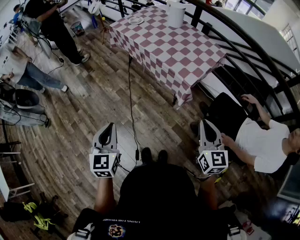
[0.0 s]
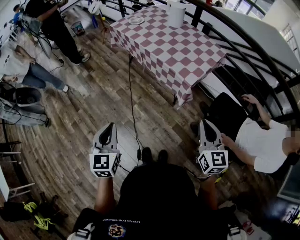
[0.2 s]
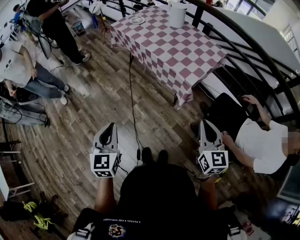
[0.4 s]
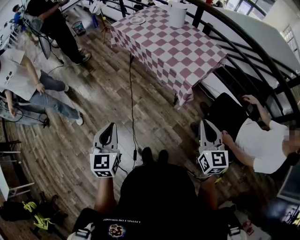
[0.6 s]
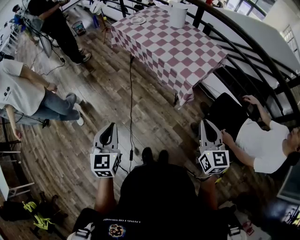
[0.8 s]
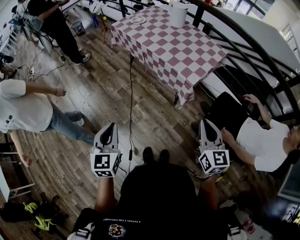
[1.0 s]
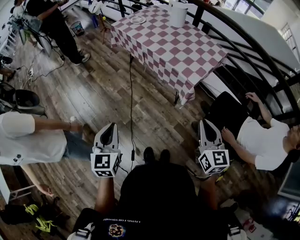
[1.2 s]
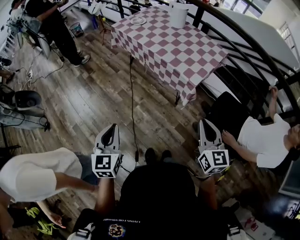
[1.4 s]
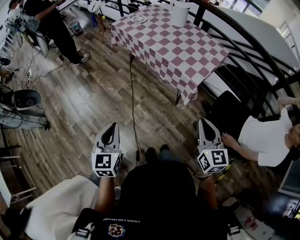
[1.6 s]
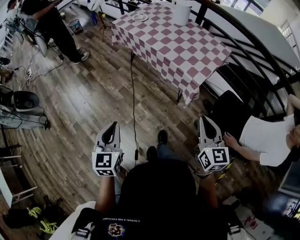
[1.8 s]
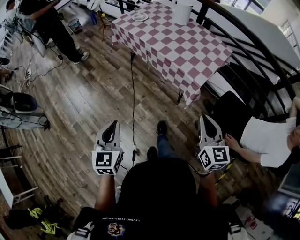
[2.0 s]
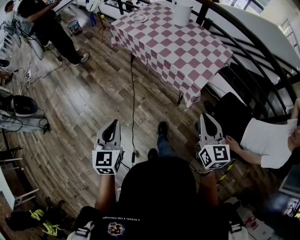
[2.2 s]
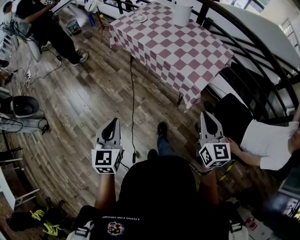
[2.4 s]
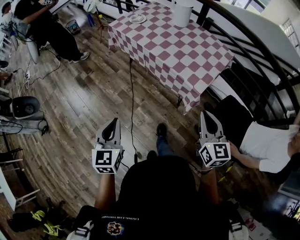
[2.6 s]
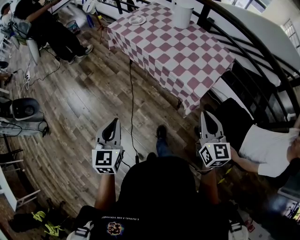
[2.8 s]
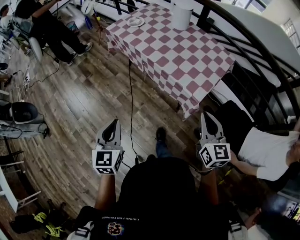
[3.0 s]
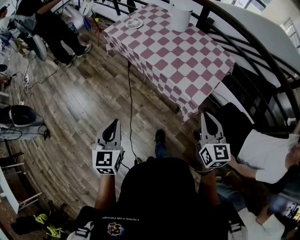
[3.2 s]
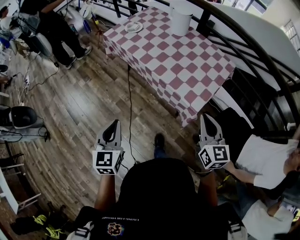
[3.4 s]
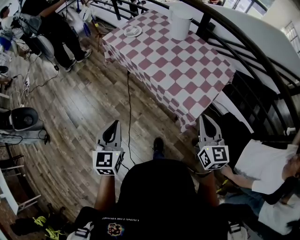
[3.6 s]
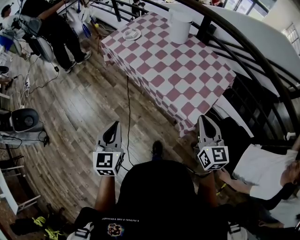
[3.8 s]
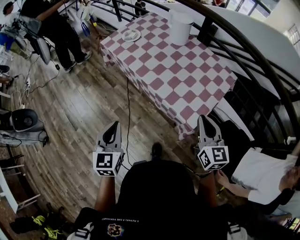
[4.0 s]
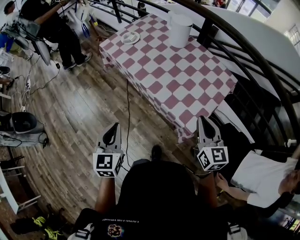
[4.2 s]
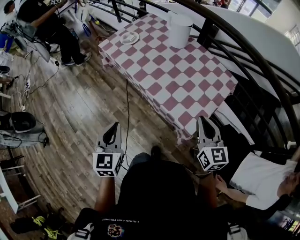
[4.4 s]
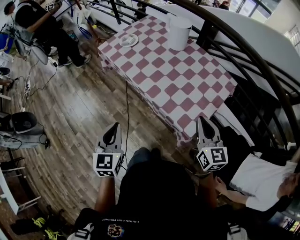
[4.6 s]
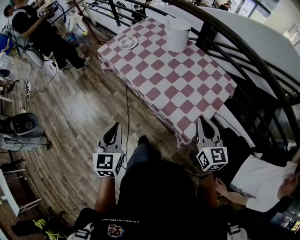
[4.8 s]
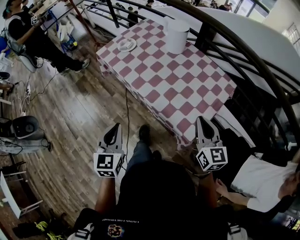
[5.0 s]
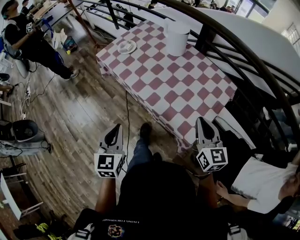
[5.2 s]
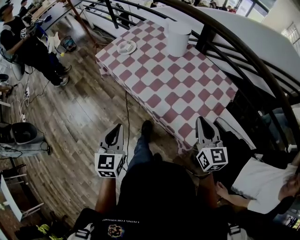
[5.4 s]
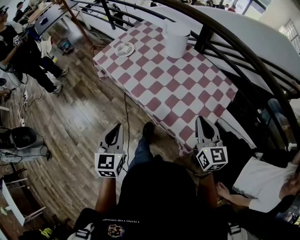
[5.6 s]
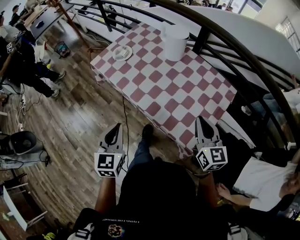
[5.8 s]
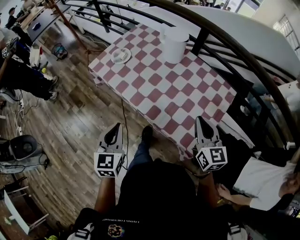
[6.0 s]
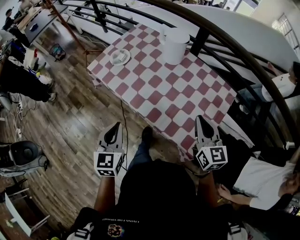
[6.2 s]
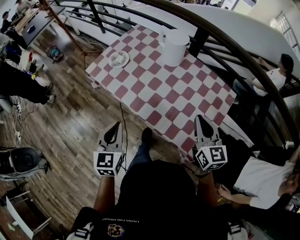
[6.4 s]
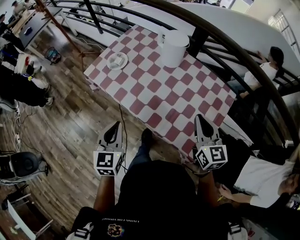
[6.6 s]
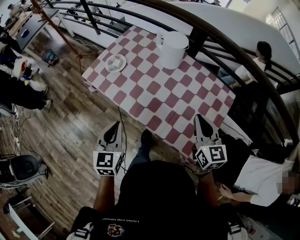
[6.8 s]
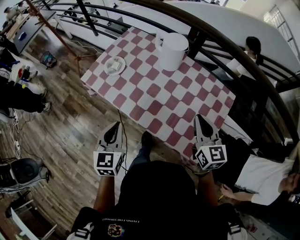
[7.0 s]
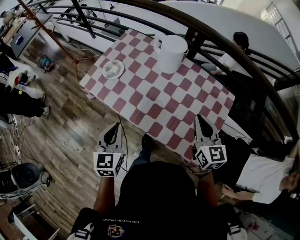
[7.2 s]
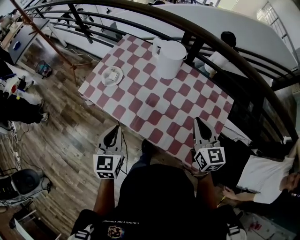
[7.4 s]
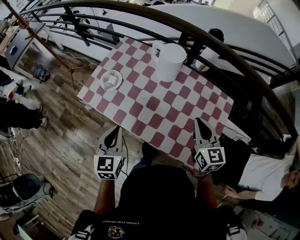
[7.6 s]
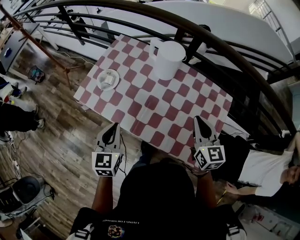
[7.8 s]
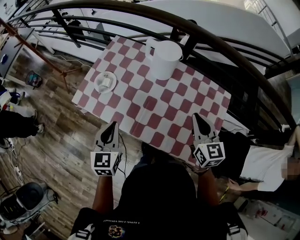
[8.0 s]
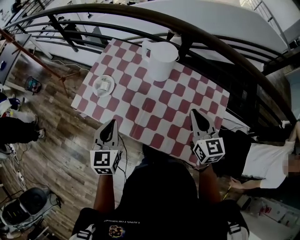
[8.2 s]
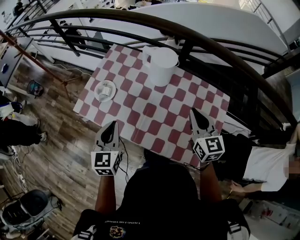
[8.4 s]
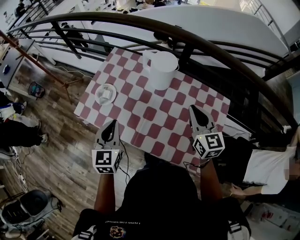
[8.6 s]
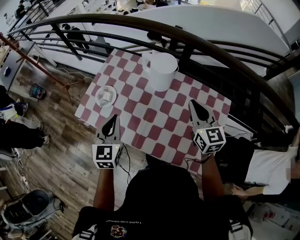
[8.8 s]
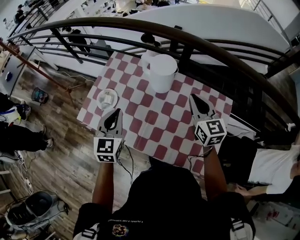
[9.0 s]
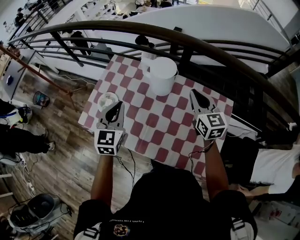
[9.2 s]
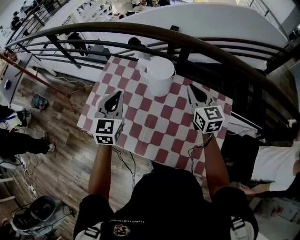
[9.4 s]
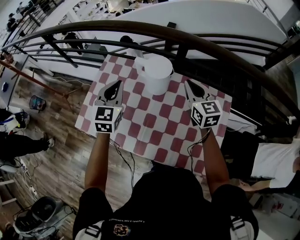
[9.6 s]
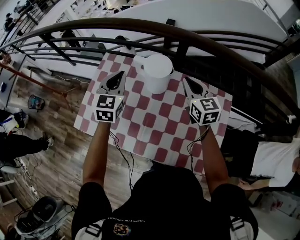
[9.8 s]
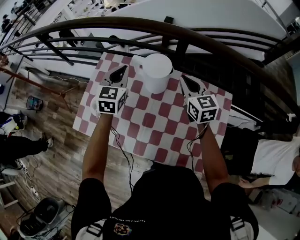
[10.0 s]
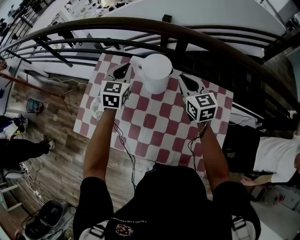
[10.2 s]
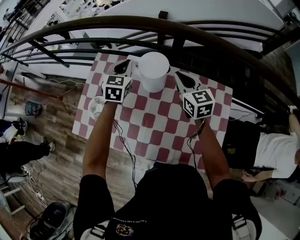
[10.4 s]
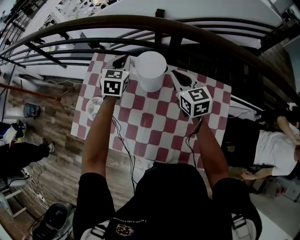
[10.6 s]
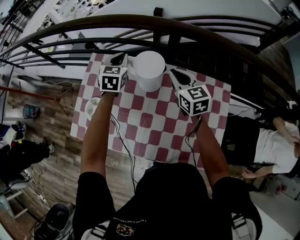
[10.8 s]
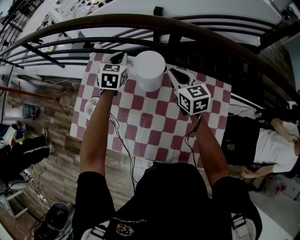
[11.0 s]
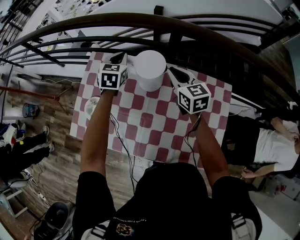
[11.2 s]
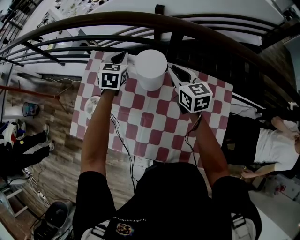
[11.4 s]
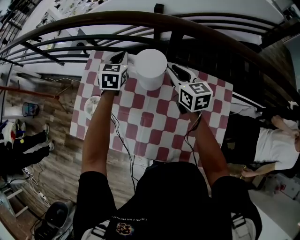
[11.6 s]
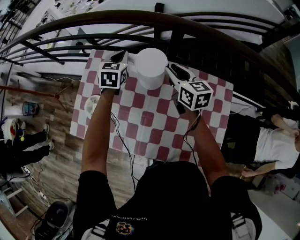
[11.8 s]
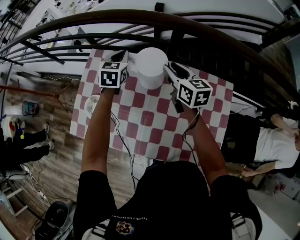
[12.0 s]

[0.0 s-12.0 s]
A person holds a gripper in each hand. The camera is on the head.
0.0 to 1.6 s: The two grippers go about 5 cm to the left.
1.6 to 3.0 s: Both grippers travel together forward, roughly 15 cm.
3.0 to 4.4 s: The left gripper is displaced forward and to the right by some 20 cm. The right gripper heads forward, covering about 20 cm.
4.4 to 6.0 s: Both grippers move forward, roughly 15 cm.
6.0 to 7.6 s: The grippers both shift forward by approximately 15 cm.
7.6 to 9.0 s: The grippers both shift forward by about 15 cm.
9.0 to 10.4 s: The right gripper moves forward, roughly 15 cm. The left gripper heads forward, covering some 25 cm.
10.4 to 12.0 s: The left gripper ends up approximately 5 cm from where it was, while the right gripper opens its fingers.

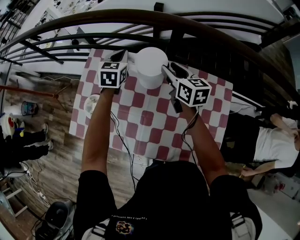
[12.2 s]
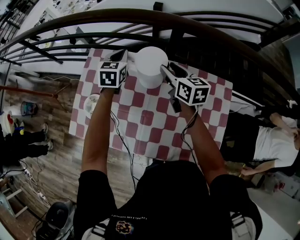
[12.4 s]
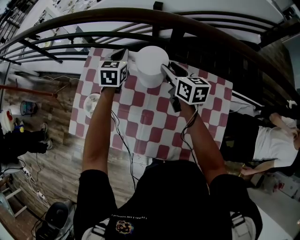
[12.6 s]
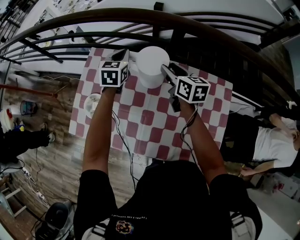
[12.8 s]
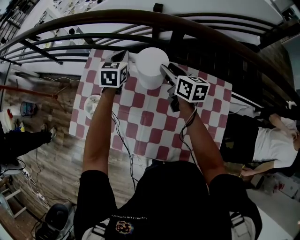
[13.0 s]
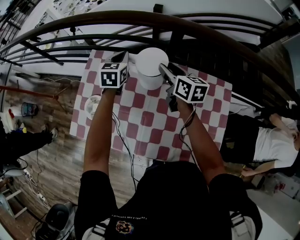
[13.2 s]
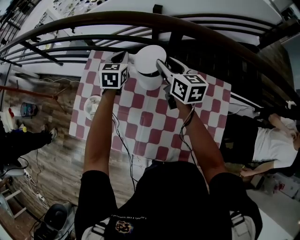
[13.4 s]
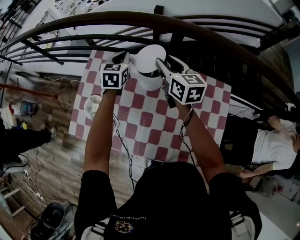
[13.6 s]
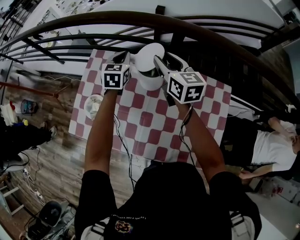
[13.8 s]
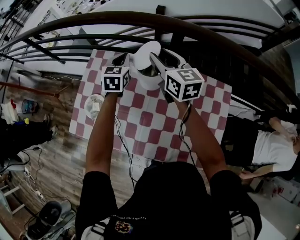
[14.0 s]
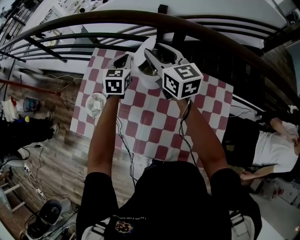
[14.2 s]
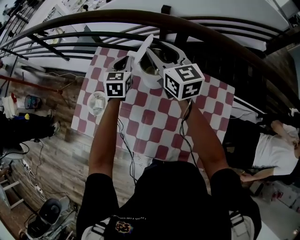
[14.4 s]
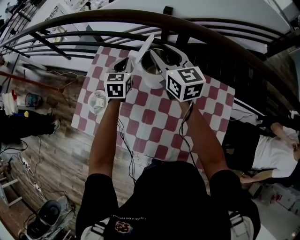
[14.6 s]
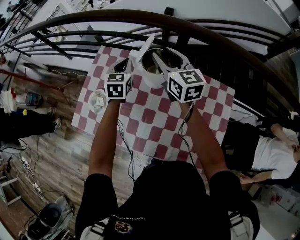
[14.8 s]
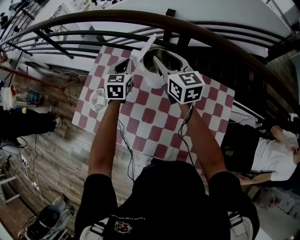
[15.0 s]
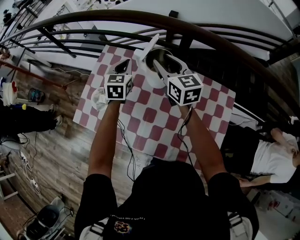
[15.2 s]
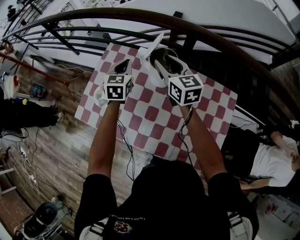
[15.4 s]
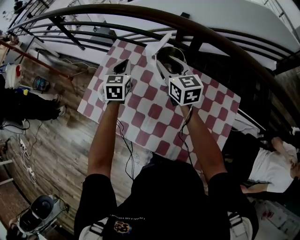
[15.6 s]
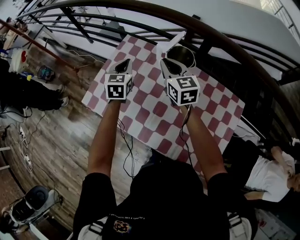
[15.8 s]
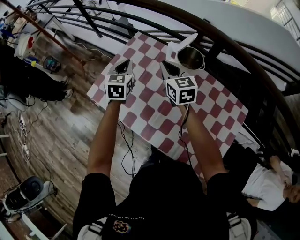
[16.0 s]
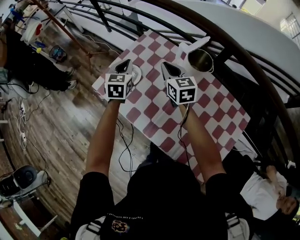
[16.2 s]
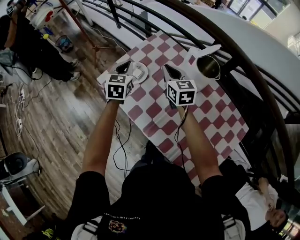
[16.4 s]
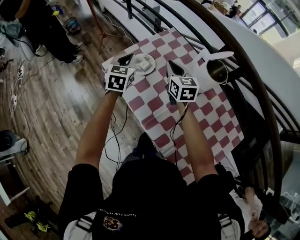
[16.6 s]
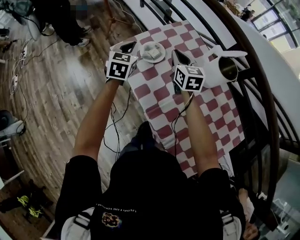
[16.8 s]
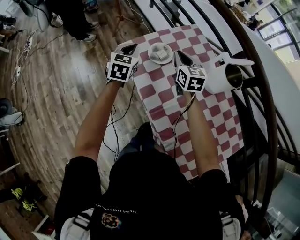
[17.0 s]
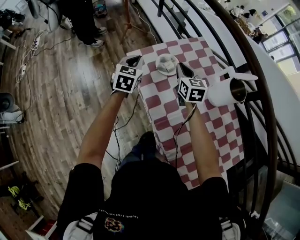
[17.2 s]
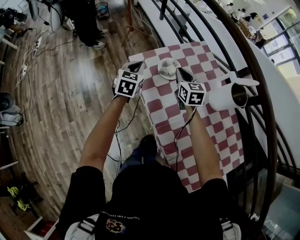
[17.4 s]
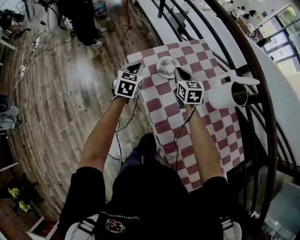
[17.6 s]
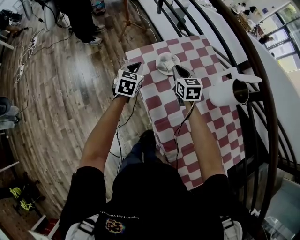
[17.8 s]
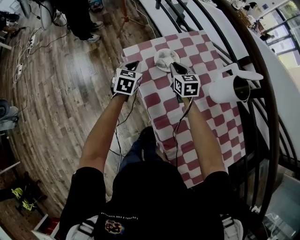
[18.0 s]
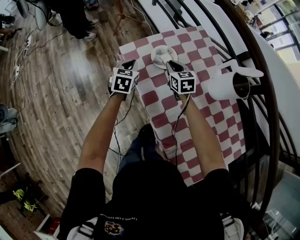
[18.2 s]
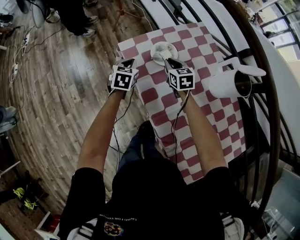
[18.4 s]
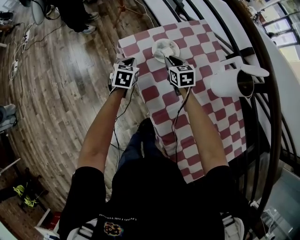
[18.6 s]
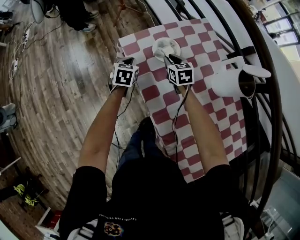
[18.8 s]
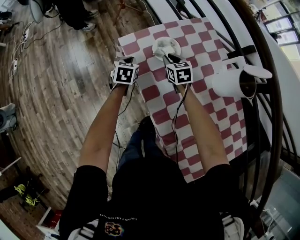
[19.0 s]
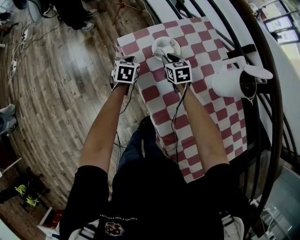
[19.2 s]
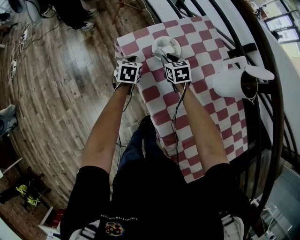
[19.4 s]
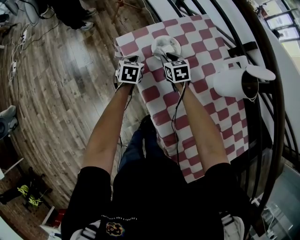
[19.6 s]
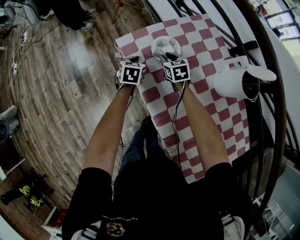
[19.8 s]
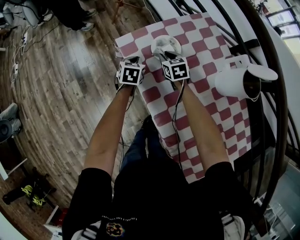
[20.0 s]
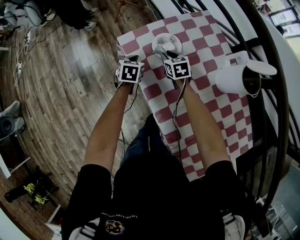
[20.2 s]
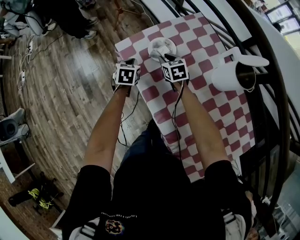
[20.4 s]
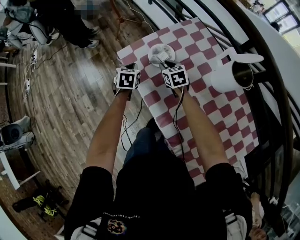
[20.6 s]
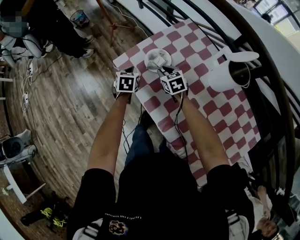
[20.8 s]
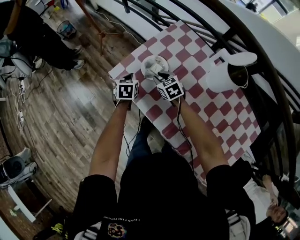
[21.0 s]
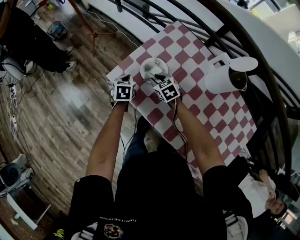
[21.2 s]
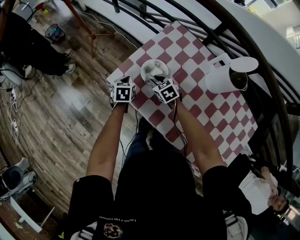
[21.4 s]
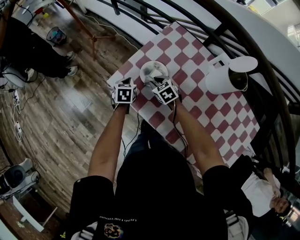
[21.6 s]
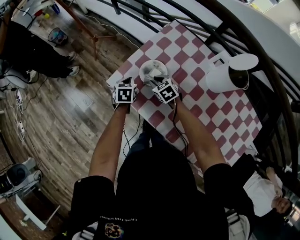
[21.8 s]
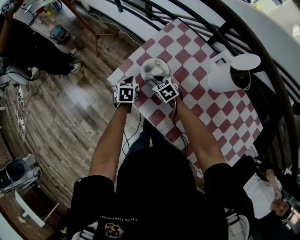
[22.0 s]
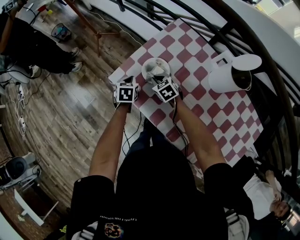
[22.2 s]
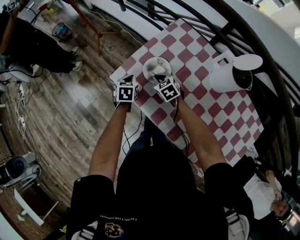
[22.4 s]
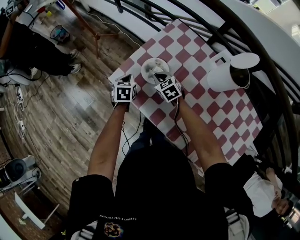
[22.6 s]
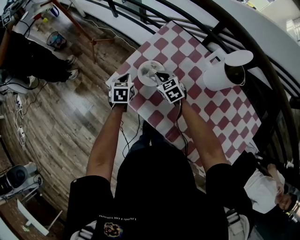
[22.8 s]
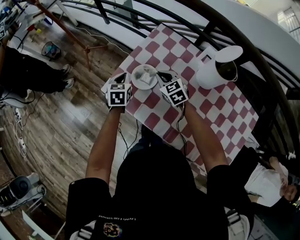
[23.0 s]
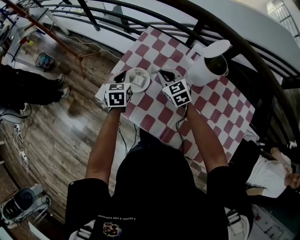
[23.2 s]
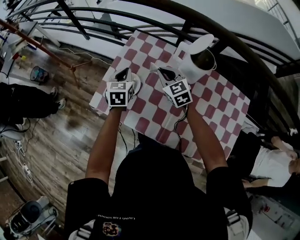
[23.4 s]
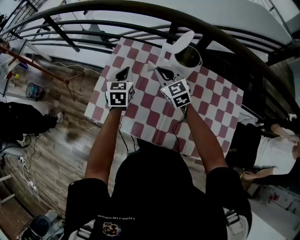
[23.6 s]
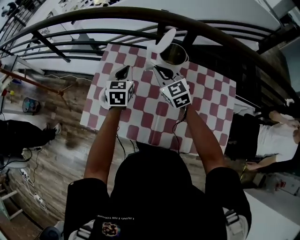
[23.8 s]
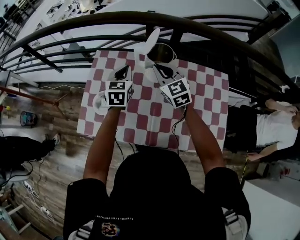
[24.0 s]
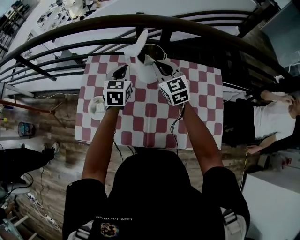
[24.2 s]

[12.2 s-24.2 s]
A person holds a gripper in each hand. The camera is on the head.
12.2 to 13.8 s: The right gripper goes roughly 5 cm upward.
13.8 to 15.2 s: The left gripper shifts roughly 5 cm backward.
15.2 to 16.6 s: The left gripper changes place by some 30 cm, and turns by roughly 30 degrees. Meanwhile the right gripper shifts by approximately 25 cm, turns by about 30 degrees, and closes its fingers.
16.6 to 18.2 s: The grippers both shift downward and to the left by approximately 15 cm. The right gripper rotates about 20 degrees.
18.2 to 19.8 s: The grippers both shift downward by about 10 cm.
19.8 to 21.2 s: The left gripper heads forward, covering some 5 cm.
21.2 to 22.6 s: The grippers make only small movements.
22.6 to 24.2 s: The right gripper moves some 40 cm, and rotates about 50 degrees, while the left gripper changes place by approximately 40 cm, and rotates roughly 50 degrees.
